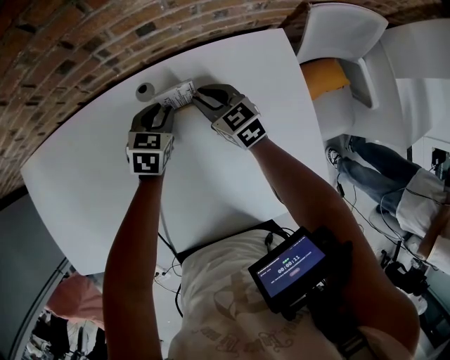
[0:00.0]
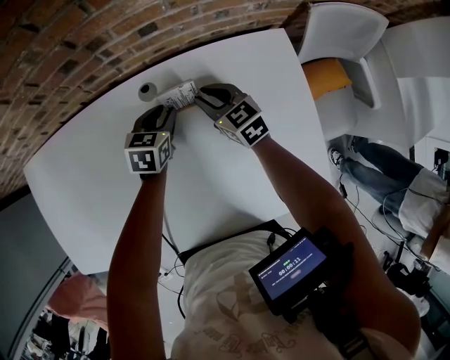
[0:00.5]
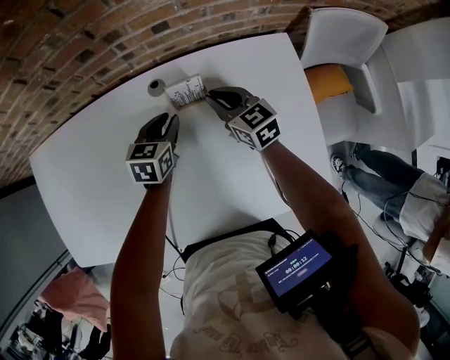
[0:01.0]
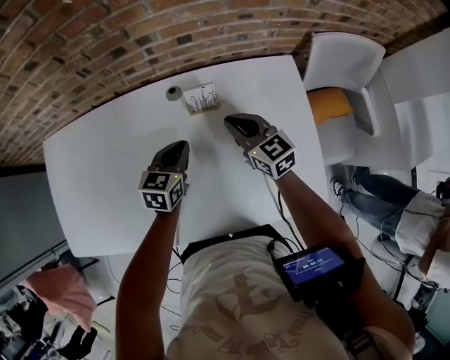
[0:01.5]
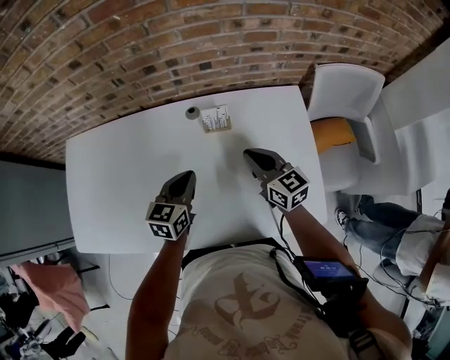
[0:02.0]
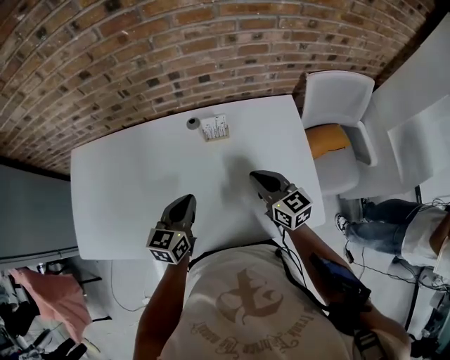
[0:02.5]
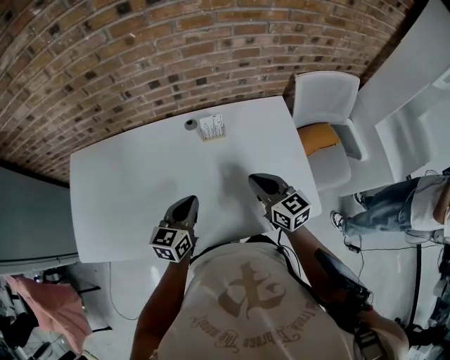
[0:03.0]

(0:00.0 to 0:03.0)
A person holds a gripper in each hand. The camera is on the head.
0:00.0 - 0:01.5: The right gripper heads upward and backward, covering roughly 15 cm. Meanwhile the left gripper goes roughly 15 cm backward and upward, and closes.
0:01.5 - 0:03.0: Both grippers travel together backward and upward, some 20 cm.

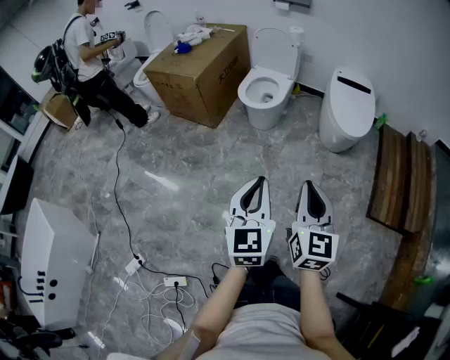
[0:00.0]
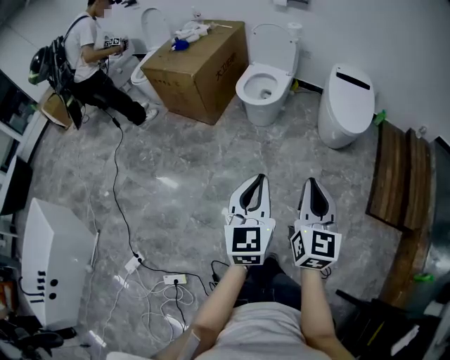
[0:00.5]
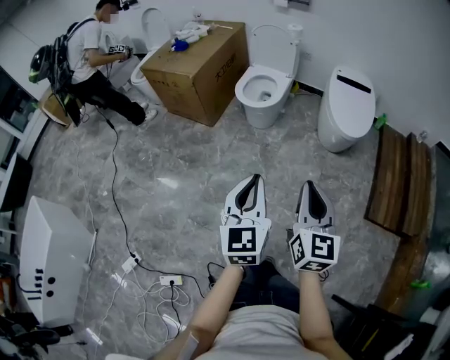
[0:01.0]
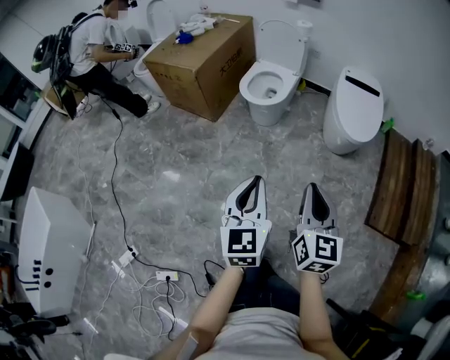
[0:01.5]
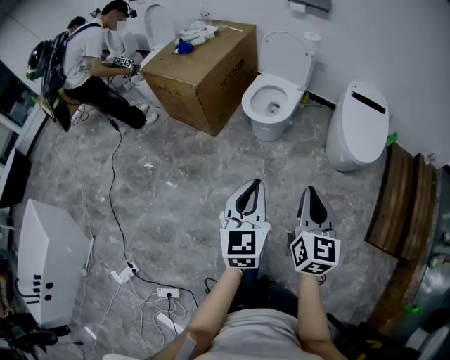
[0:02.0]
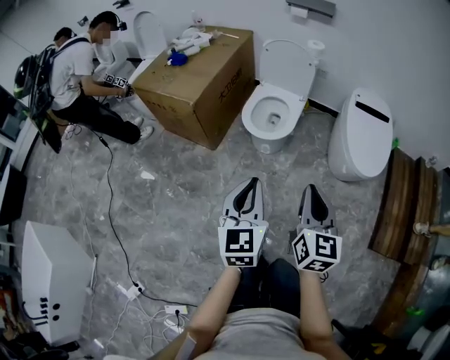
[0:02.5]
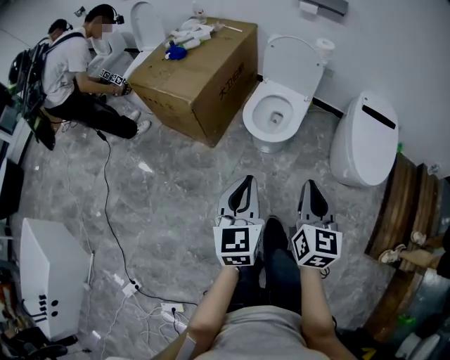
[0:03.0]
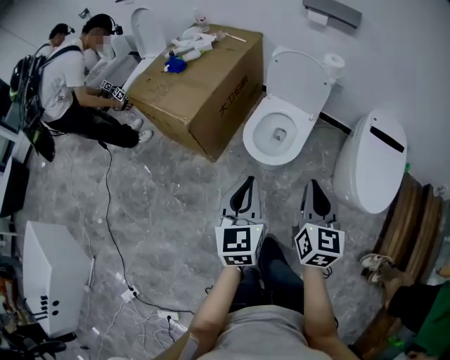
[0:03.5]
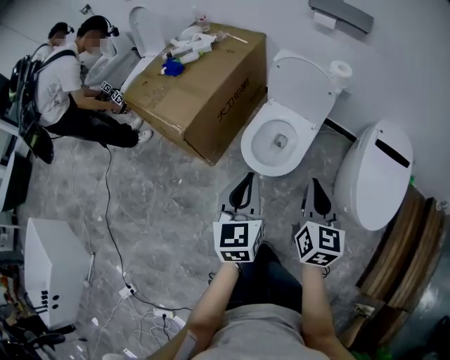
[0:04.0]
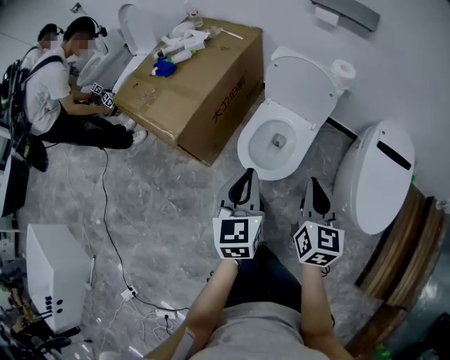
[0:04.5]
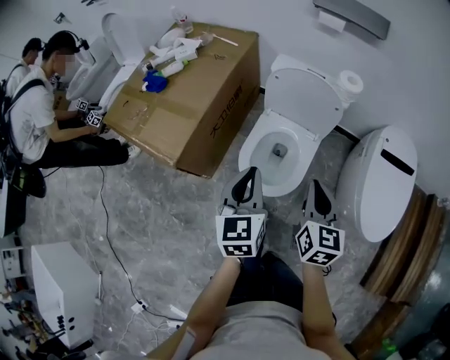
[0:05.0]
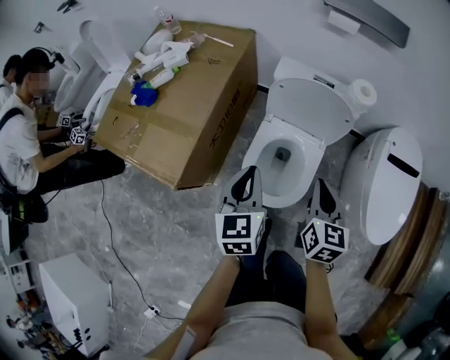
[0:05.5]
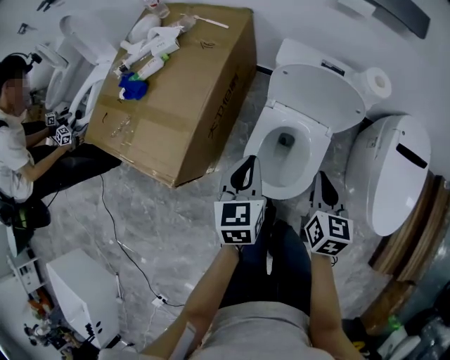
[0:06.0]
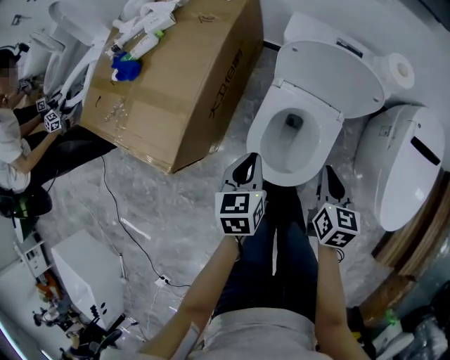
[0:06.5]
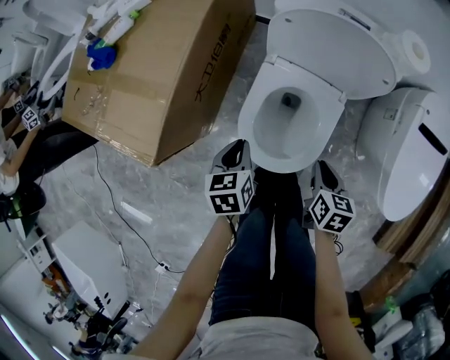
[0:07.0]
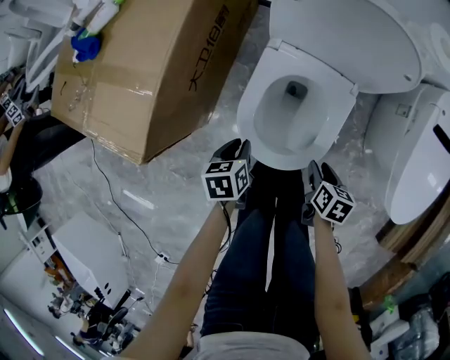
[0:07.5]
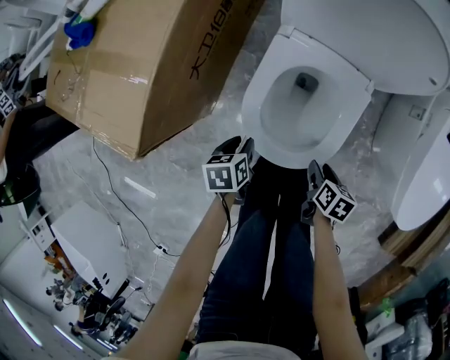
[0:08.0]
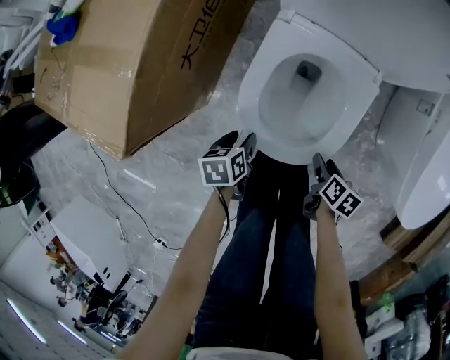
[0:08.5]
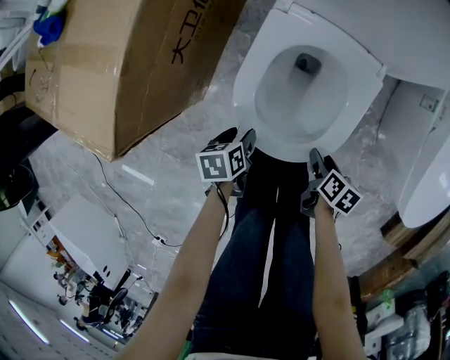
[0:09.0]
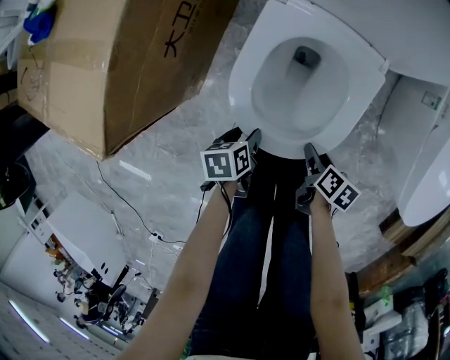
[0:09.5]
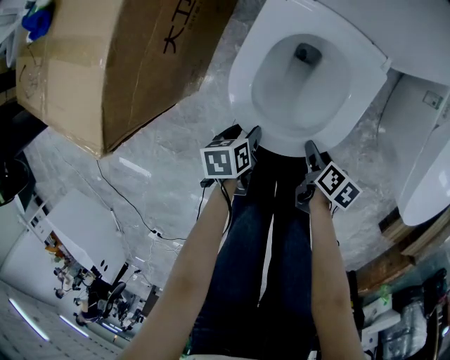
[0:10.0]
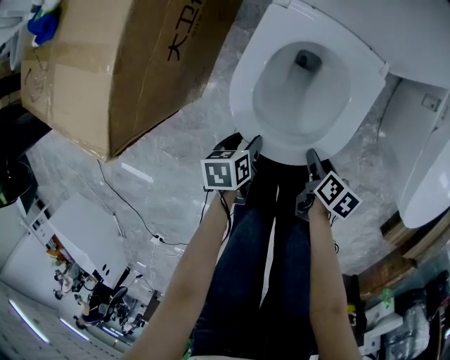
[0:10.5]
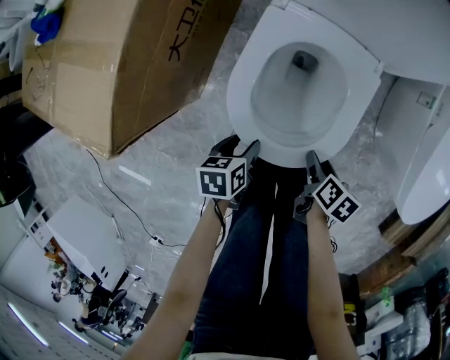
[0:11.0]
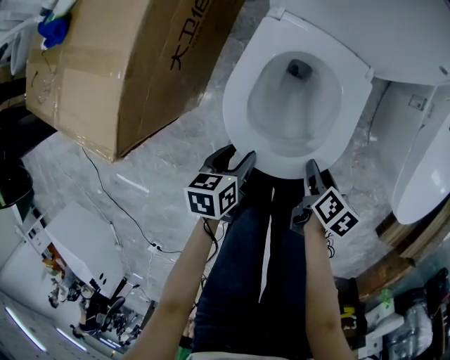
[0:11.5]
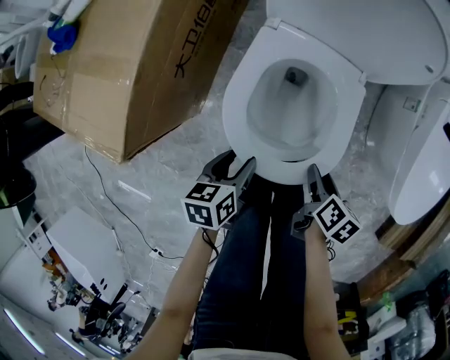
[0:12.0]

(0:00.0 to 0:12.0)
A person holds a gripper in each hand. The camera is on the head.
0:00.0 - 0:02.0: Both grippers travel together forward, about 15 cm.
0:02.0 - 0:04.0: Both grippers are carried forward, about 40 cm.
0:04.0 - 0:06.0: Both grippers travel together forward and downward, some 35 cm.
0:06.0 - 0:08.0: Both grippers travel together downward, about 35 cm. The left gripper tips its fingers downward by about 30 degrees, and opens up. The right gripper swivels roughly 40 degrees, and opens its fingers.
0:08.0 - 0:10.0: Both grippers travel together downward, some 5 cm.
0:10.0 - 0:12.0: Both grippers travel together upward, roughly 15 cm.

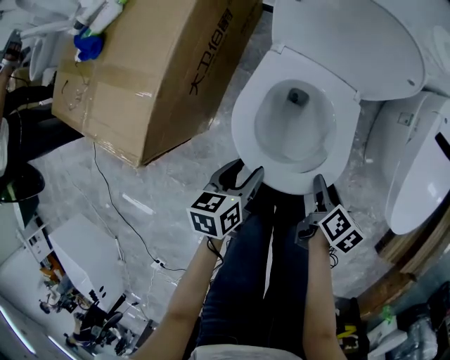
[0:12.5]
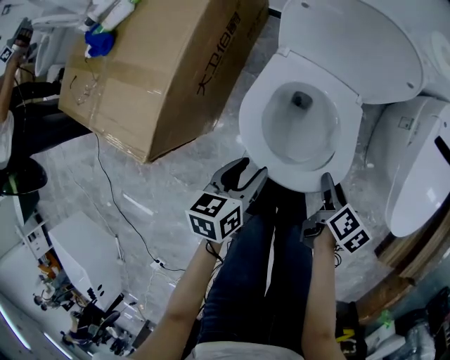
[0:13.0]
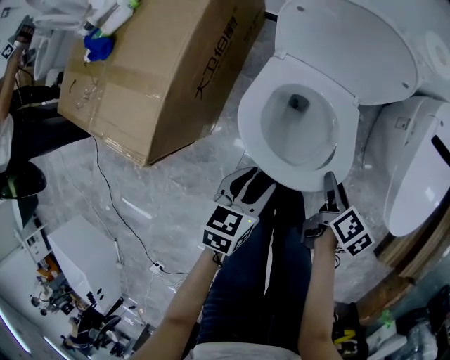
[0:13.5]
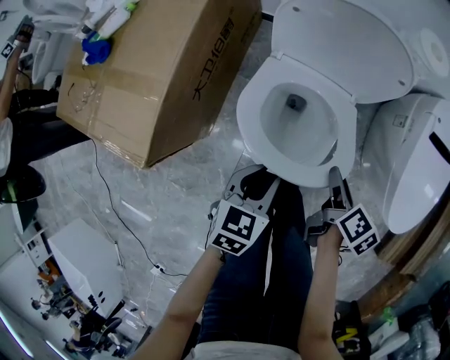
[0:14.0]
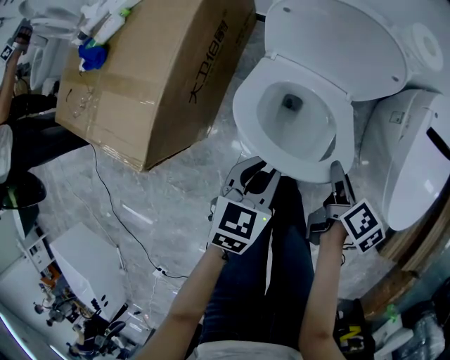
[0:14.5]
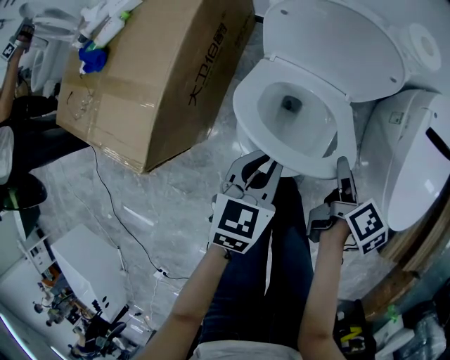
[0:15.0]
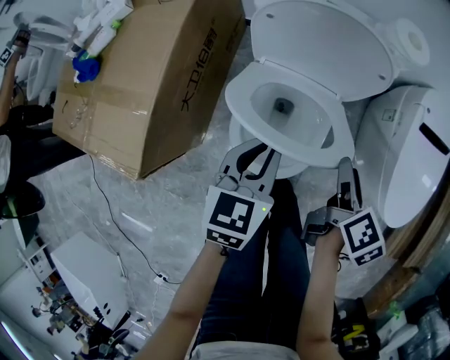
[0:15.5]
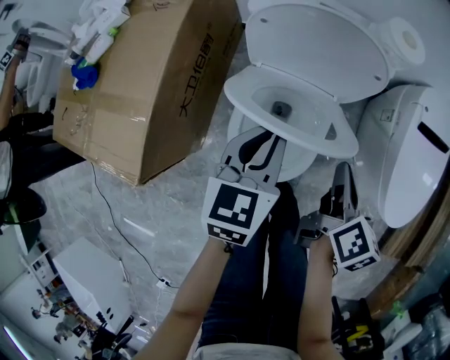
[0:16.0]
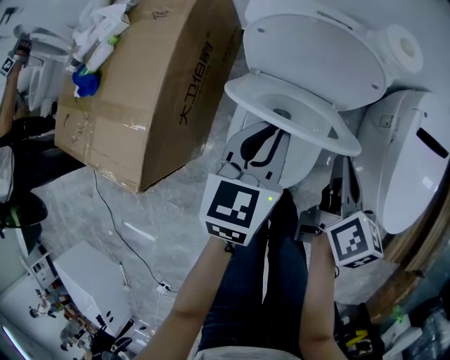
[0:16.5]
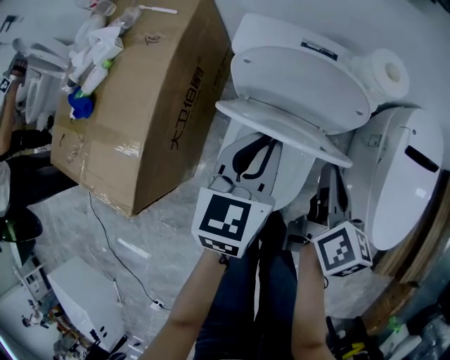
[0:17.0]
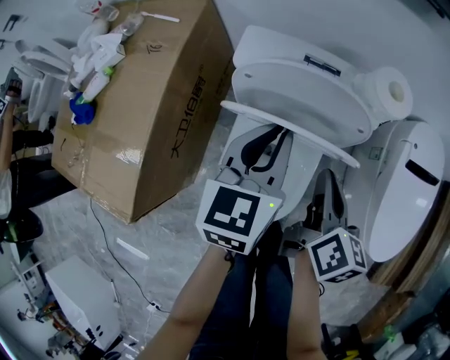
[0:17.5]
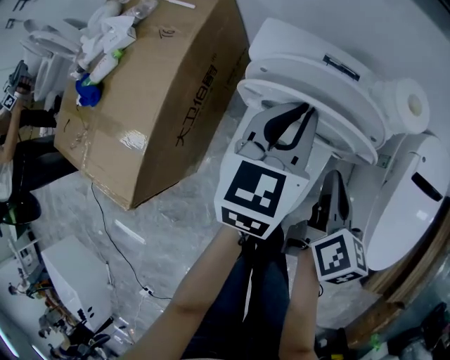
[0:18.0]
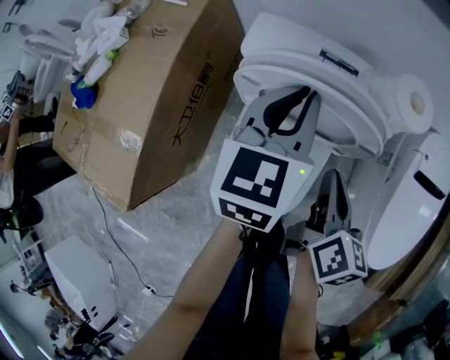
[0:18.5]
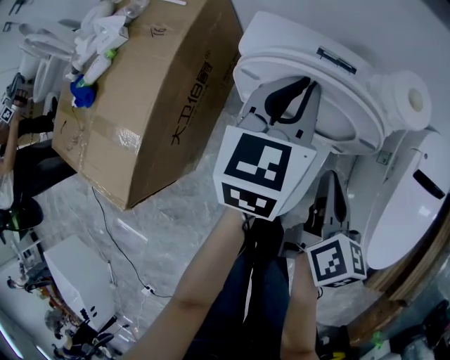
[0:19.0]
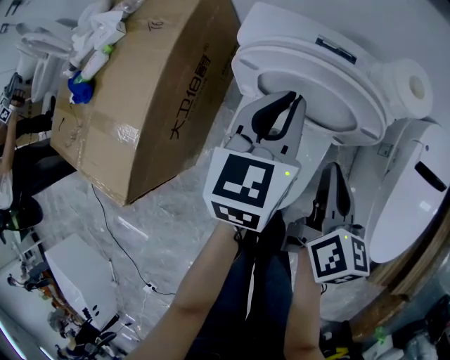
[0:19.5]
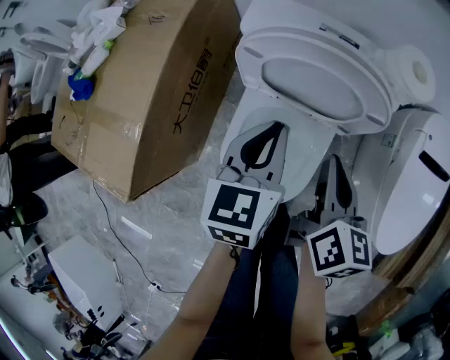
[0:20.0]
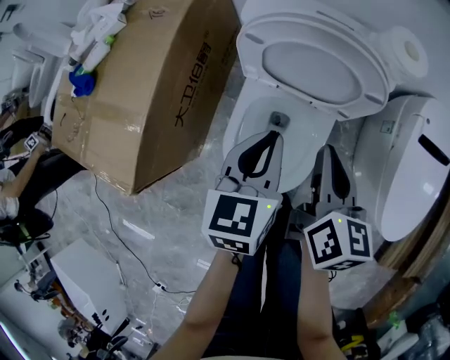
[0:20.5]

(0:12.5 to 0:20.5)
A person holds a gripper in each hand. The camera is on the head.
0:12.5 - 0:14.5: The two grippers go roughly 10 cm upward and forward. The left gripper rotates some 30 degrees, and closes.
0:14.5 - 0:16.5: The left gripper goes some 15 cm forward and upward, while the right gripper heads upward and forward, covering some 15 cm, swivels some 20 degrees, and closes up.
0:16.5 - 0:18.5: The right gripper heads forward, covering roughly 5 cm; the left gripper travels forward by roughly 15 cm.
0:18.5 - 0:20.5: The right gripper shifts approximately 5 cm backward; the left gripper moves backward, roughly 15 cm.

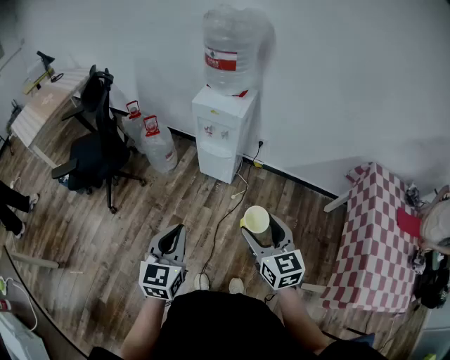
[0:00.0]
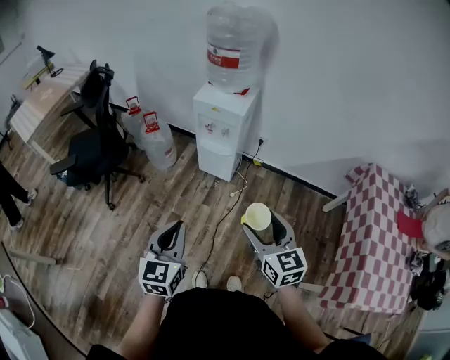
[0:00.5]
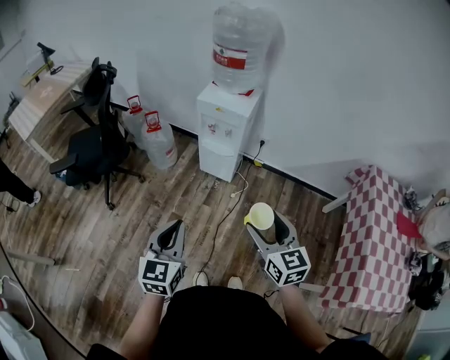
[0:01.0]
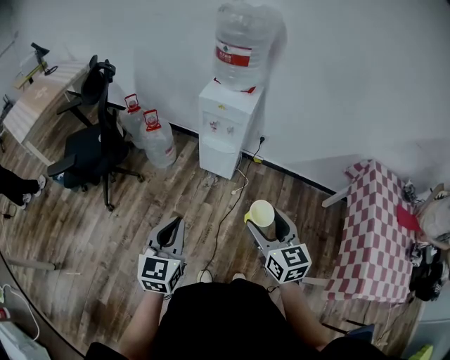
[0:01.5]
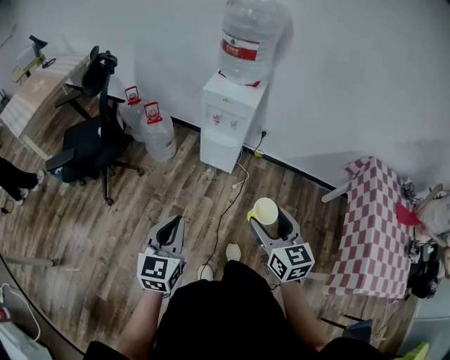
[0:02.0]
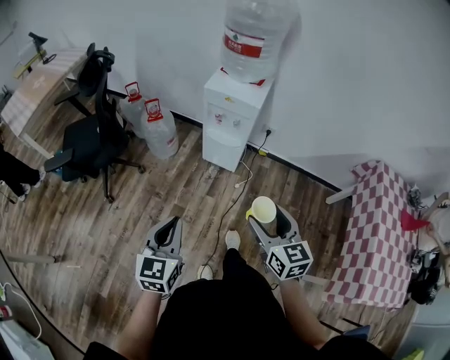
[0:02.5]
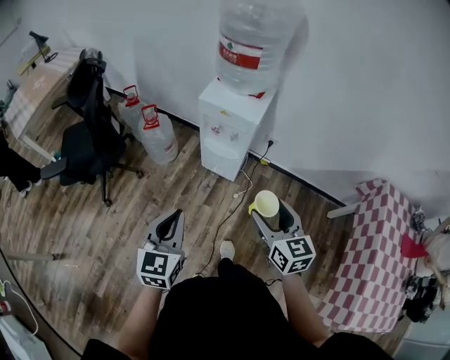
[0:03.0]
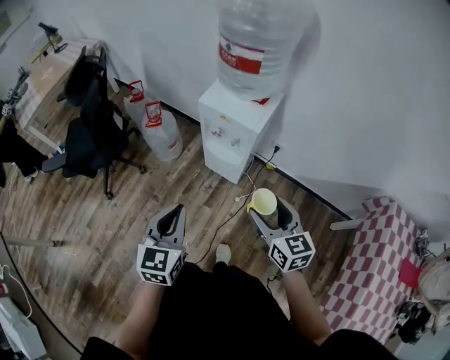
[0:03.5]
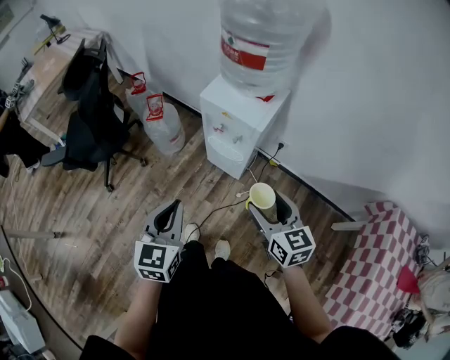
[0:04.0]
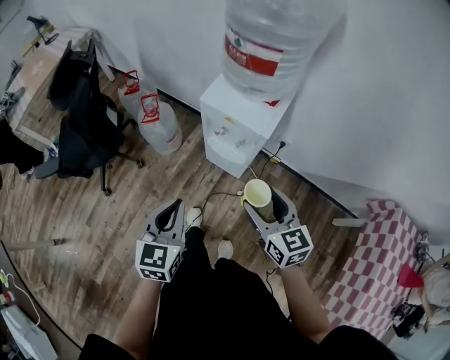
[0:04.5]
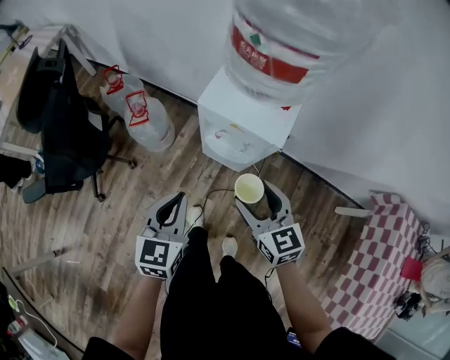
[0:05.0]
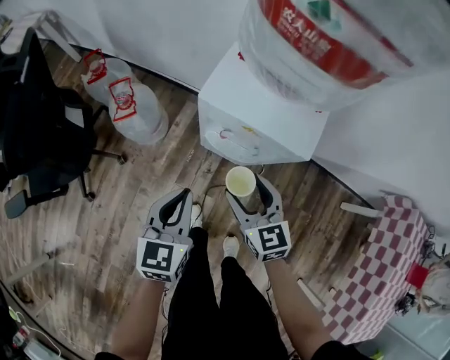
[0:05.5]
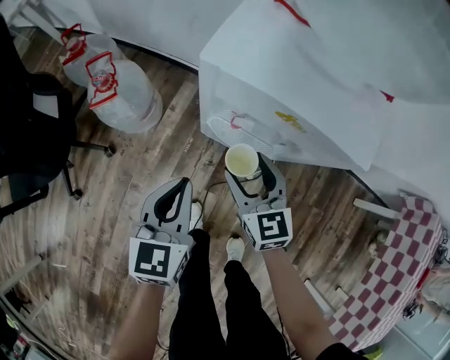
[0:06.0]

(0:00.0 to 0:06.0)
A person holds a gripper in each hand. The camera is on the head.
0:00.0 - 0:02.0: The two grippers go roughly 10 cm to the left.
0:02.0 - 0:04.0: The grippers both shift forward and to the right by some 30 cm.
0:04.0 - 0:06.0: The left gripper is displaced downward and forward by some 40 cm; the right gripper is displaced downward, forward and to the left by roughly 40 cm.
